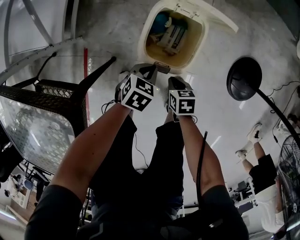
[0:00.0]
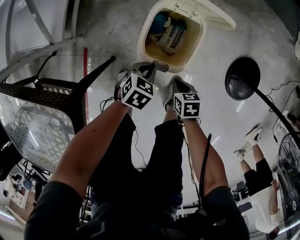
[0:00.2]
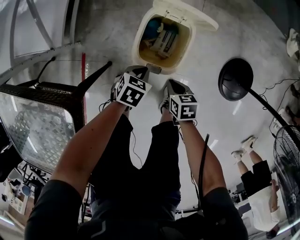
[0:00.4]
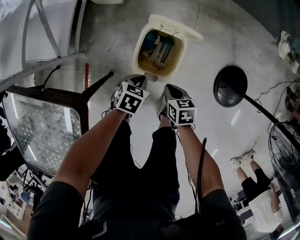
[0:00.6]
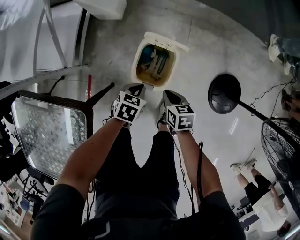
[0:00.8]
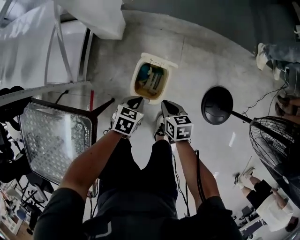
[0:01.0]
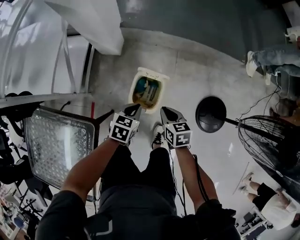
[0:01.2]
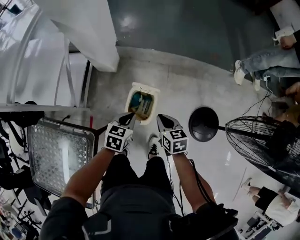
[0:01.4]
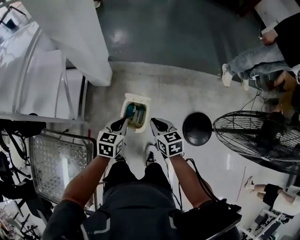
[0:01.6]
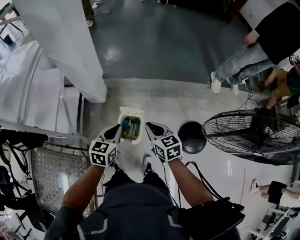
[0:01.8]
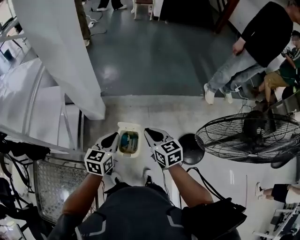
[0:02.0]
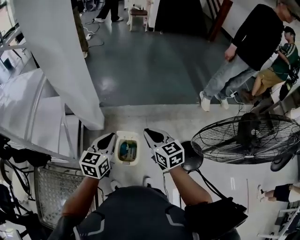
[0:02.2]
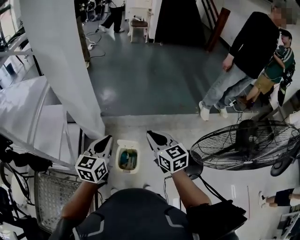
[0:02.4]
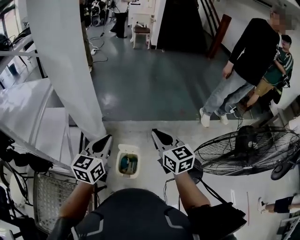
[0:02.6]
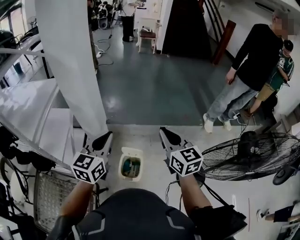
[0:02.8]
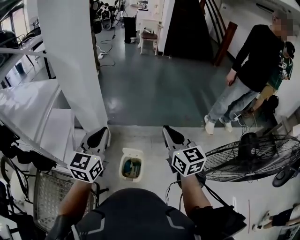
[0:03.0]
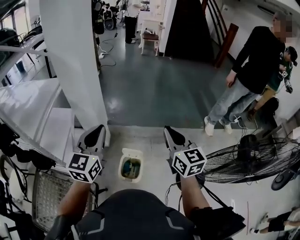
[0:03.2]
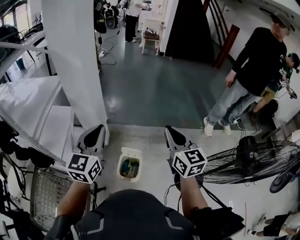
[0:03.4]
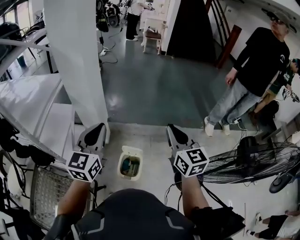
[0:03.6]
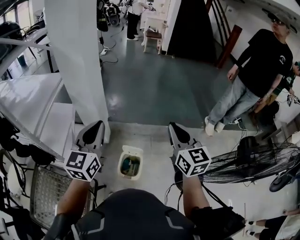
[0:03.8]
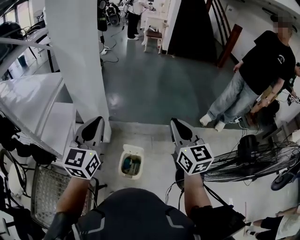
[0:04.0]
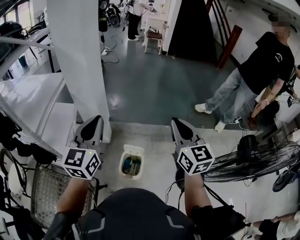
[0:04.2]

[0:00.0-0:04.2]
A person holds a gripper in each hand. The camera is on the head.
0:00.0 to 0:01.4: Both grippers travel together upward, some 40 cm. The left gripper turns by about 20 degrees; the right gripper swivels about 30 degrees.
0:01.4 to 0:02.8: The grippers both shift upward by about 40 cm. The left gripper angles its fingers upward, by about 40 degrees, while the right gripper tilts its fingers approximately 30 degrees upward.
0:02.8 to 0:04.2: The right gripper heads upward, covering roughly 5 cm. The left gripper goes about 10 cm upward and to the left.

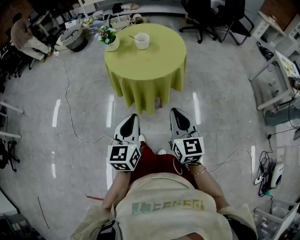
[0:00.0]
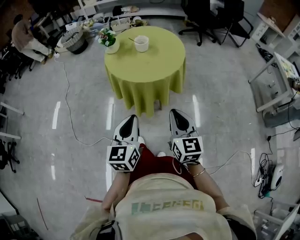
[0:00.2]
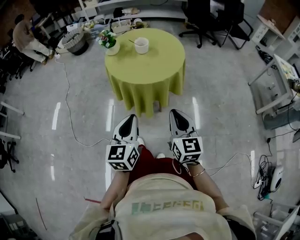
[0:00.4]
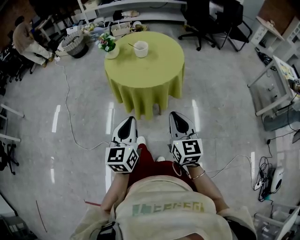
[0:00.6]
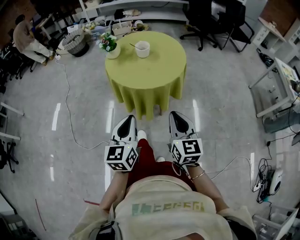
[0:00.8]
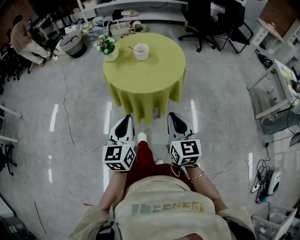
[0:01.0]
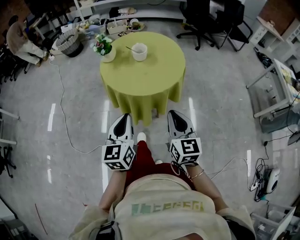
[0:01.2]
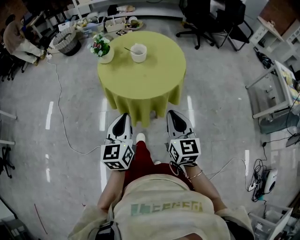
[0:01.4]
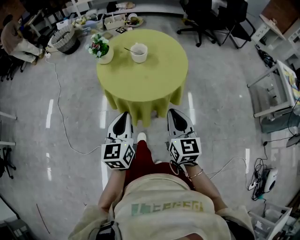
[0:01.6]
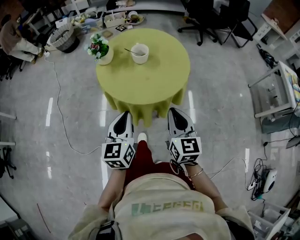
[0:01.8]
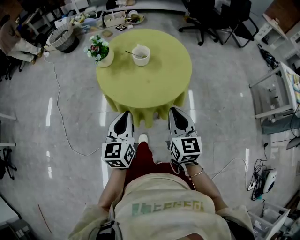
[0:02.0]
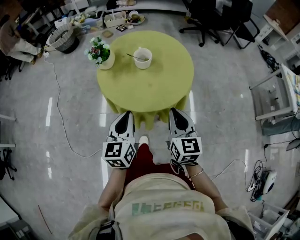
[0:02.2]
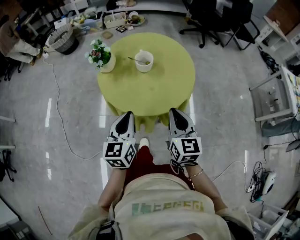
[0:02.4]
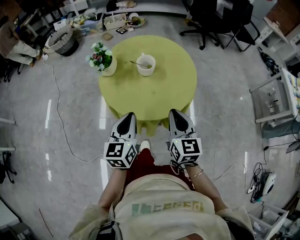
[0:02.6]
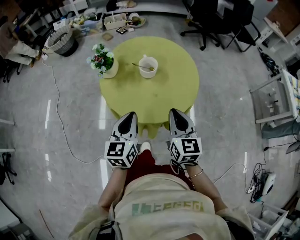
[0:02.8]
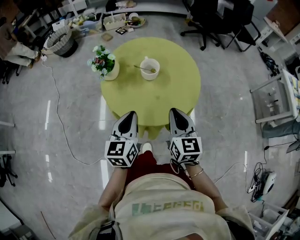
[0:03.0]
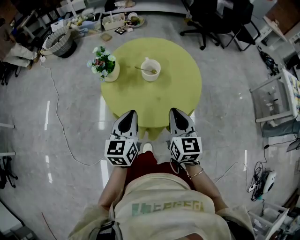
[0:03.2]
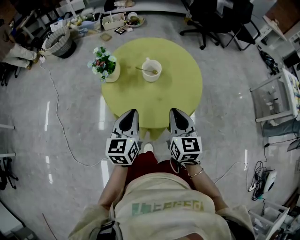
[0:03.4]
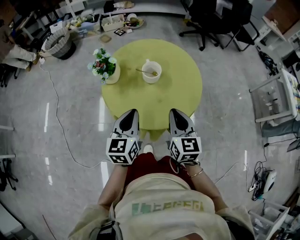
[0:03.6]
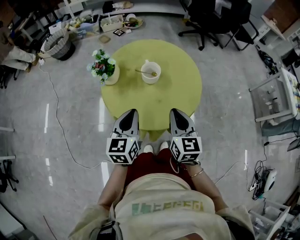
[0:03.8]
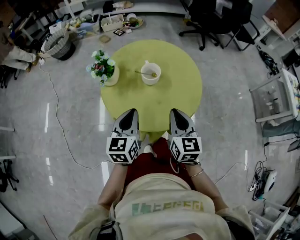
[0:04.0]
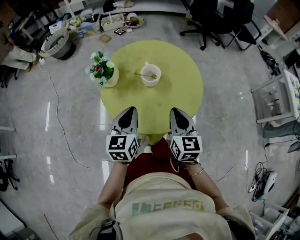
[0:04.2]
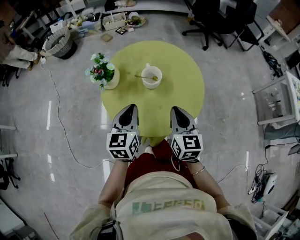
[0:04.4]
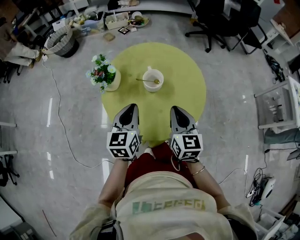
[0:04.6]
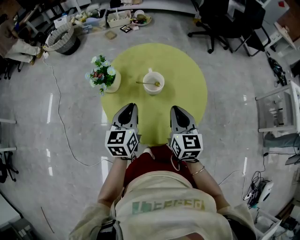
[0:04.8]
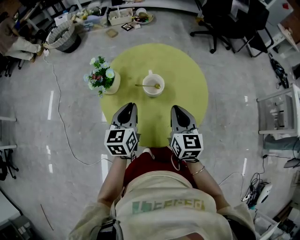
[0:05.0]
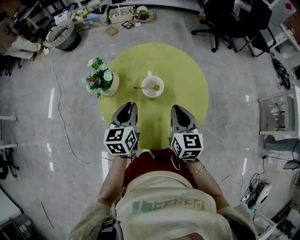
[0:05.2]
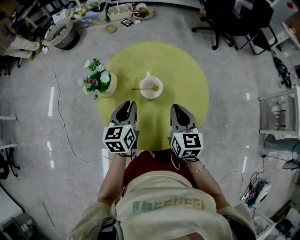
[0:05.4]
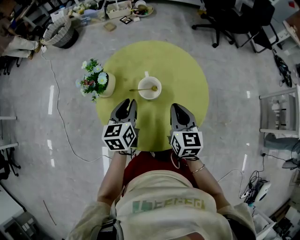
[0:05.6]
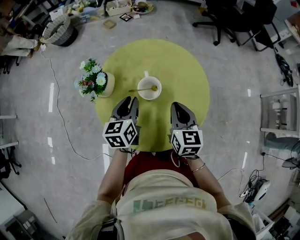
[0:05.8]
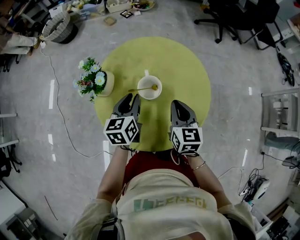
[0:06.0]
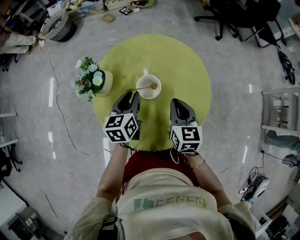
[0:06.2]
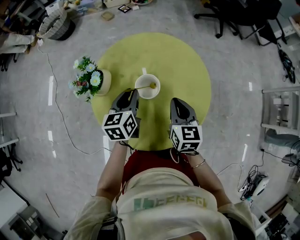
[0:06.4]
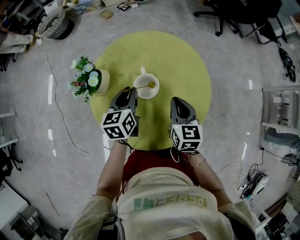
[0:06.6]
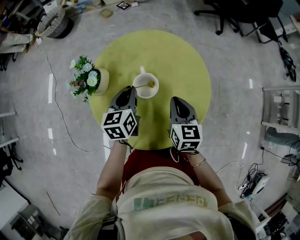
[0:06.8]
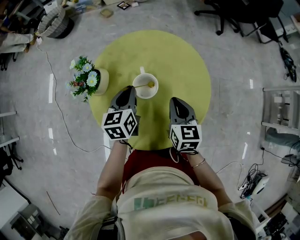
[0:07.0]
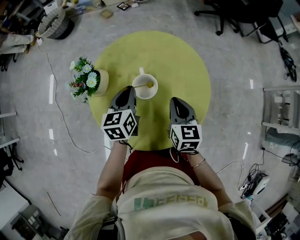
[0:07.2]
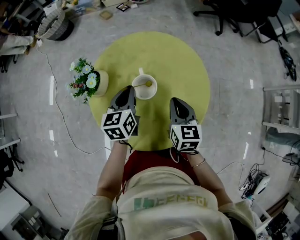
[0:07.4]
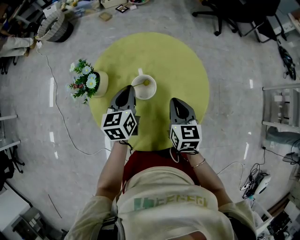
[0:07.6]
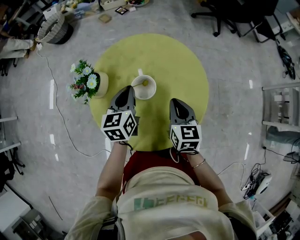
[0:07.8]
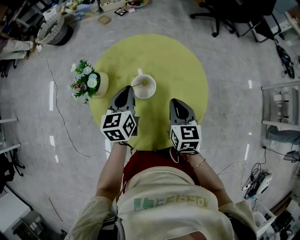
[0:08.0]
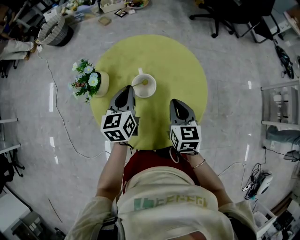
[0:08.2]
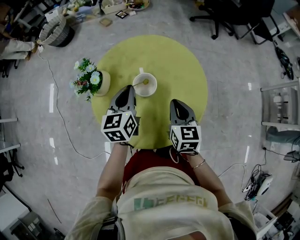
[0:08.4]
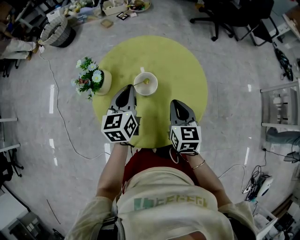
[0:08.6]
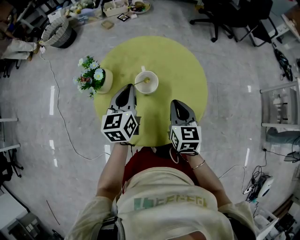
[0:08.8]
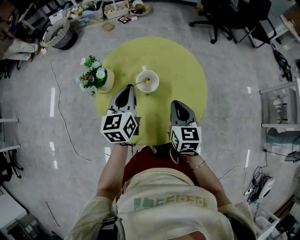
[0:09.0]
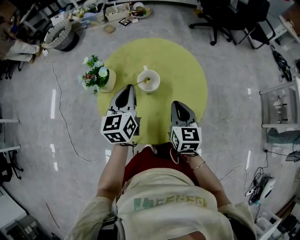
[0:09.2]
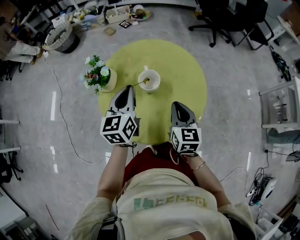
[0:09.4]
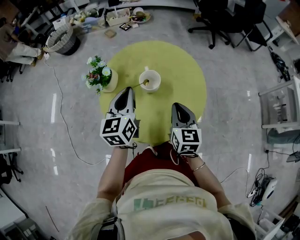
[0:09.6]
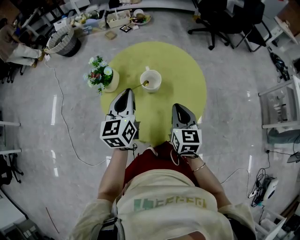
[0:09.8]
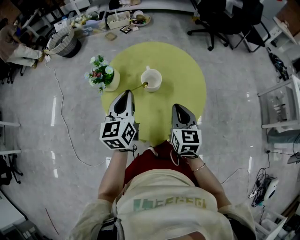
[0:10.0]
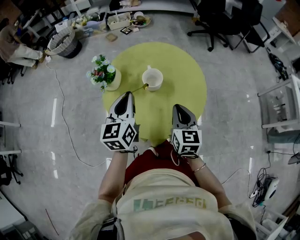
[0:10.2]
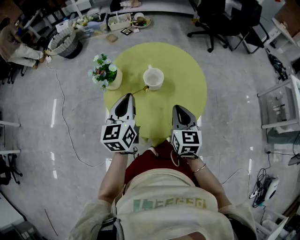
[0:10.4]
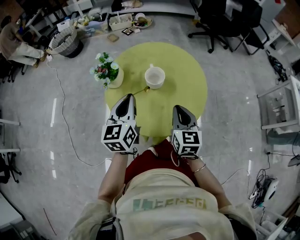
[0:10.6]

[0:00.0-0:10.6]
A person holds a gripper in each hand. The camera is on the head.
0:00.0 to 0:01.6: Both grippers travel together forward, approximately 20 cm.
0:01.6 to 0:03.0: The left gripper goes about 20 cm forward. Meanwhile the right gripper is displaced forward and to the left by about 20 cm.
0:03.0 to 0:04.6: Both grippers move forward, roughly 10 cm.
0:04.6 to 0:06.0: The grippers both shift forward and downward by some 15 cm.
0:06.0 to 0:07.6: The grippers stay close to where they were, moving slightly.
0:07.6 to 0:09.0: The left gripper moves upward and backward, some 10 cm, while the right gripper is displaced backward by roughly 5 cm.
0:09.0 to 0:10.6: The grippers both shift backward by approximately 10 cm.

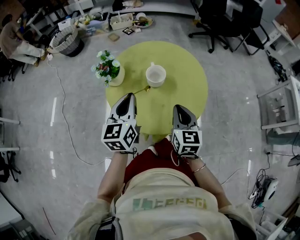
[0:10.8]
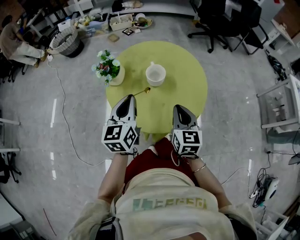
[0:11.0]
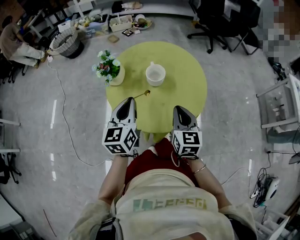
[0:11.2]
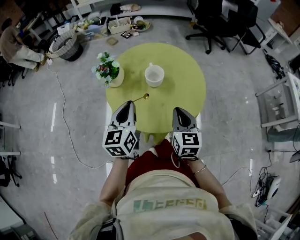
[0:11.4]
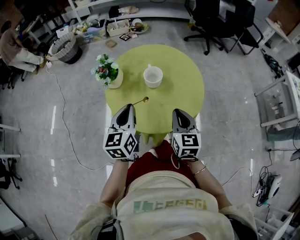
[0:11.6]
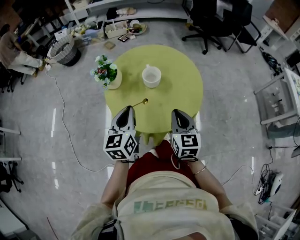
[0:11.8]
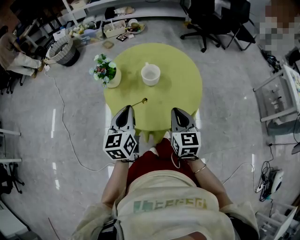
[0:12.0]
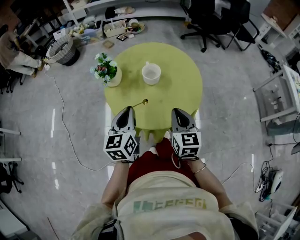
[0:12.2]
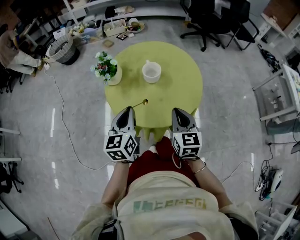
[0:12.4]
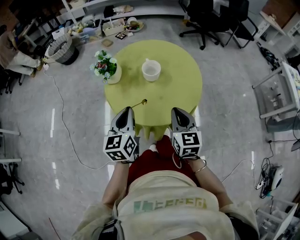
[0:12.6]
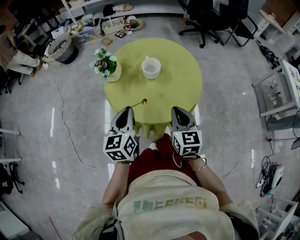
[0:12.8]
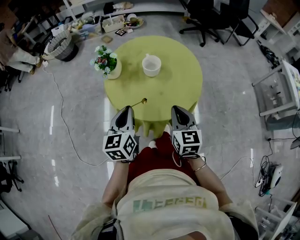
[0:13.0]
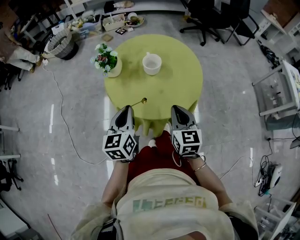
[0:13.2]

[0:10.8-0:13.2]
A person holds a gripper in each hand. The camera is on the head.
0:10.8 to 0:12.0: Both grippers move backward, about 5 cm.
0:12.0 to 0:13.2: Both grippers move backward, approximately 5 cm.

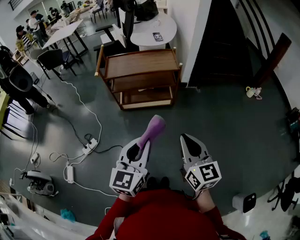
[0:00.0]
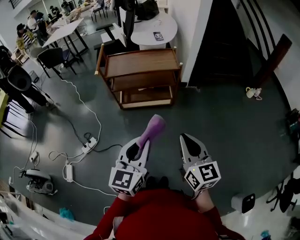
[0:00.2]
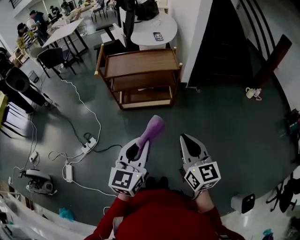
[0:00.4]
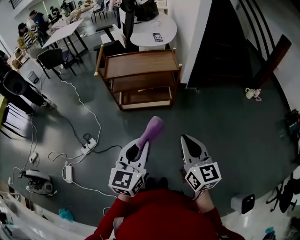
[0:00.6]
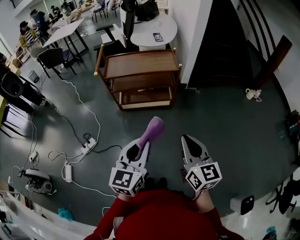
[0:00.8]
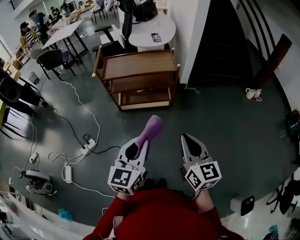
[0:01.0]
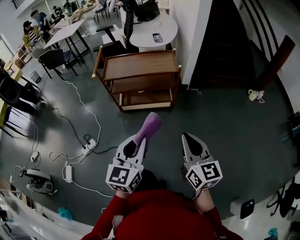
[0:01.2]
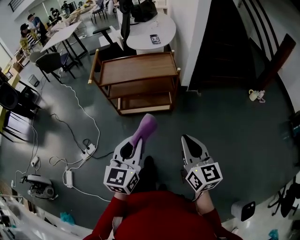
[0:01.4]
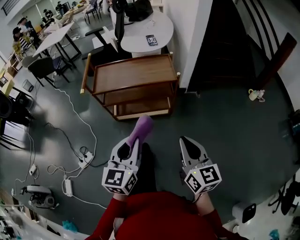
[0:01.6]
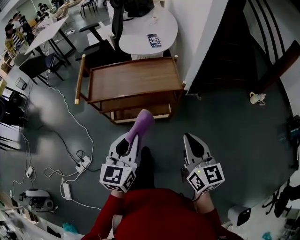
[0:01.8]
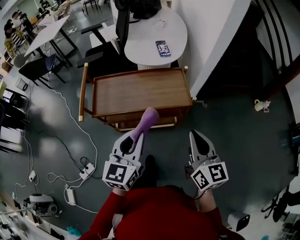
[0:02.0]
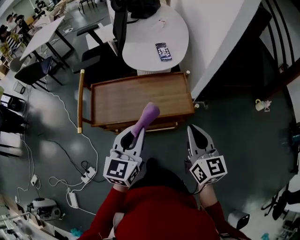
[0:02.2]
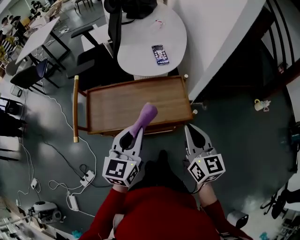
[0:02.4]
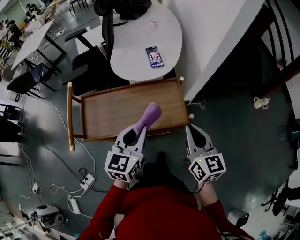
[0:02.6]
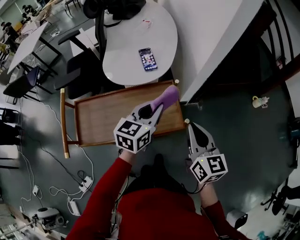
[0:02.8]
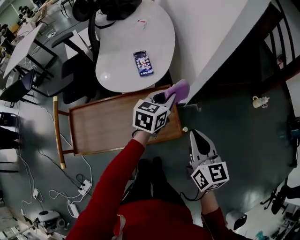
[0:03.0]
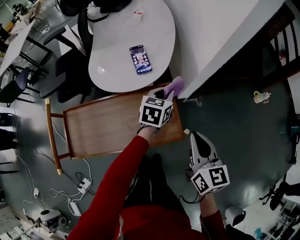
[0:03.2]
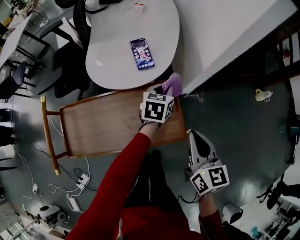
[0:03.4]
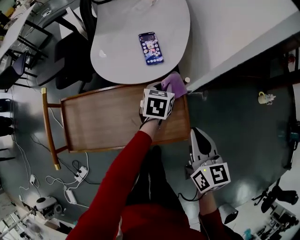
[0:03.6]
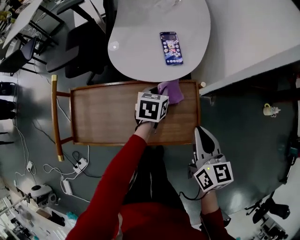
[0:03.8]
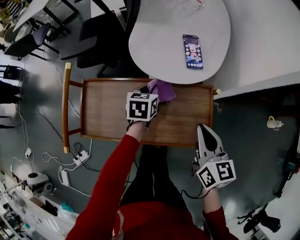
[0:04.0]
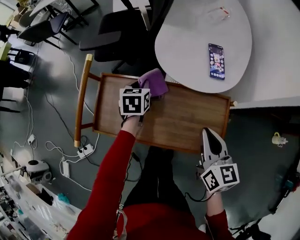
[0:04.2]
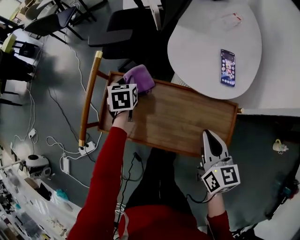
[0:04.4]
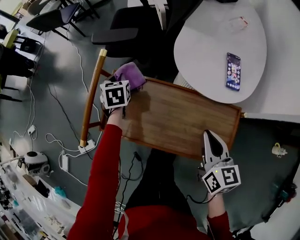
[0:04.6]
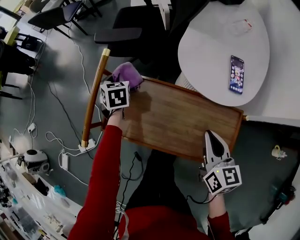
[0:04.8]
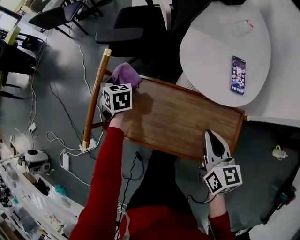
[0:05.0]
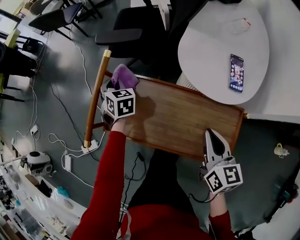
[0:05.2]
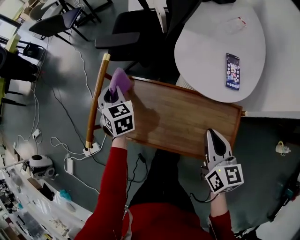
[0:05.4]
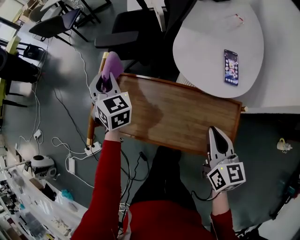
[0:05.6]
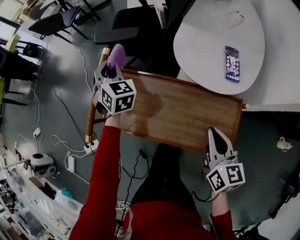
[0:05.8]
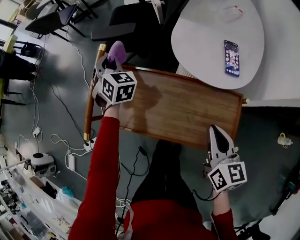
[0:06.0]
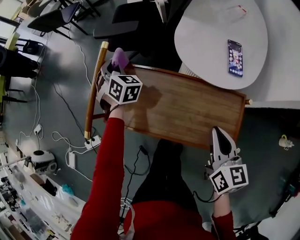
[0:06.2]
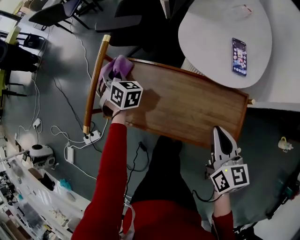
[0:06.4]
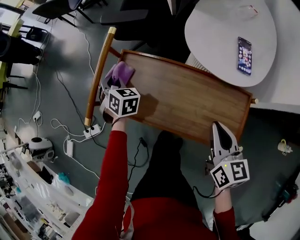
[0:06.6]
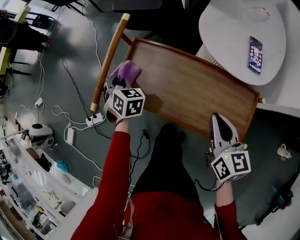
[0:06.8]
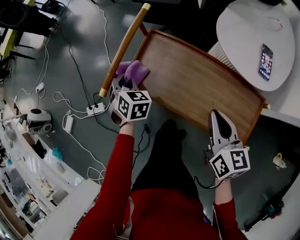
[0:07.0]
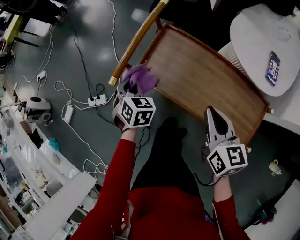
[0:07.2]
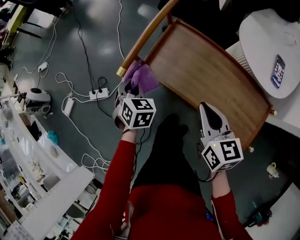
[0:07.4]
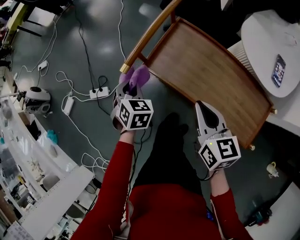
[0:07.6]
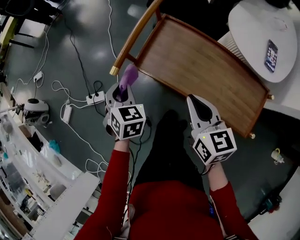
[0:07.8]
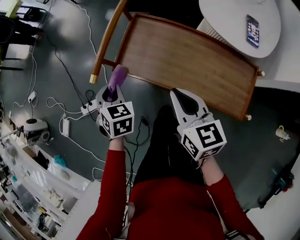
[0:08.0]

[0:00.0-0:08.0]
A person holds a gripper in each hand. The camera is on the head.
0:00.0 to 0:01.6: The grippers both shift forward by some 15 cm.
0:01.6 to 0:03.2: The left gripper is displaced forward by approximately 50 cm, and rotates some 30 degrees; the right gripper heads forward, covering some 35 cm.
0:03.2 to 0:04.8: The left gripper shifts by some 50 cm, and rotates roughly 60 degrees; the right gripper changes place by approximately 20 cm, and changes its angle by roughly 30 degrees.
0:04.8 to 0:06.4: The left gripper reaches approximately 15 cm upward, then returns, and rotates some 30 degrees.
0:06.4 to 0:08.0: The left gripper goes approximately 25 cm backward and to the left; the right gripper heads to the left and forward, covering about 20 cm, and turns by about 20 degrees.
